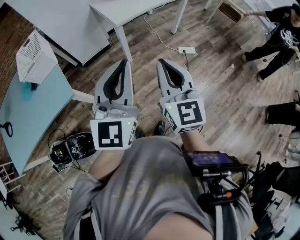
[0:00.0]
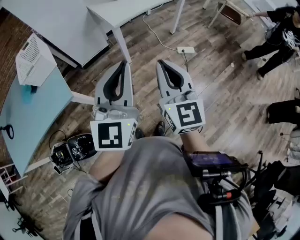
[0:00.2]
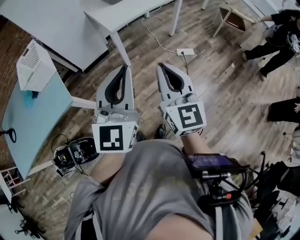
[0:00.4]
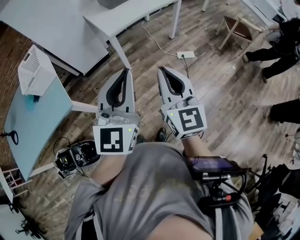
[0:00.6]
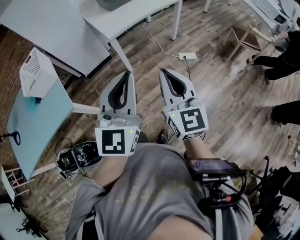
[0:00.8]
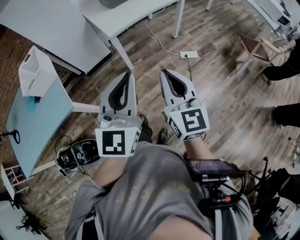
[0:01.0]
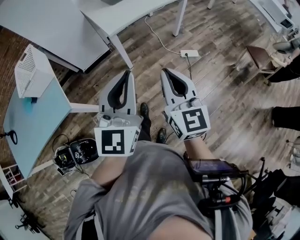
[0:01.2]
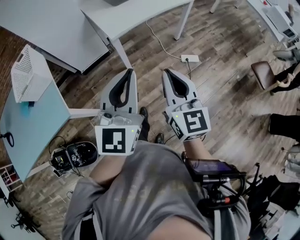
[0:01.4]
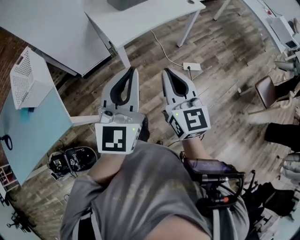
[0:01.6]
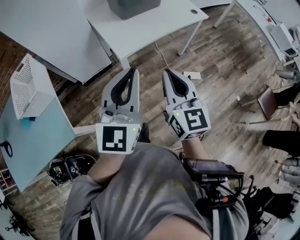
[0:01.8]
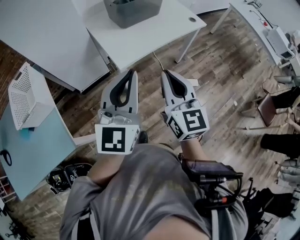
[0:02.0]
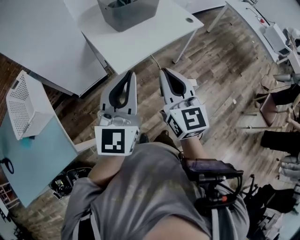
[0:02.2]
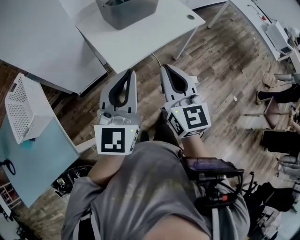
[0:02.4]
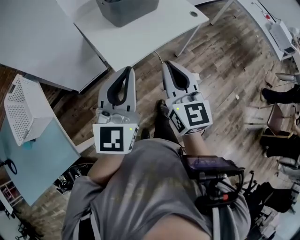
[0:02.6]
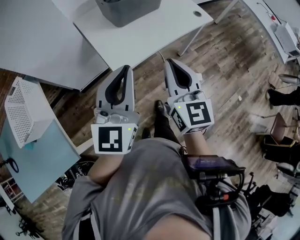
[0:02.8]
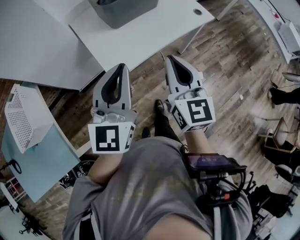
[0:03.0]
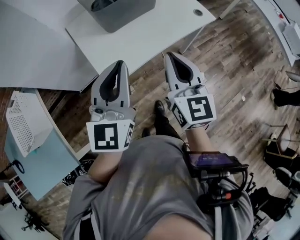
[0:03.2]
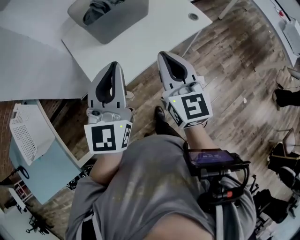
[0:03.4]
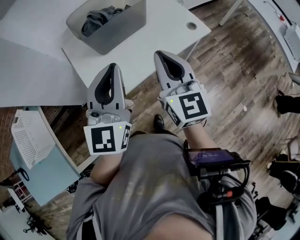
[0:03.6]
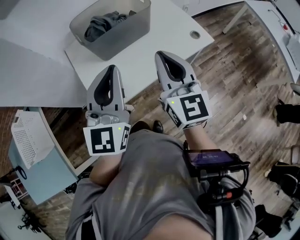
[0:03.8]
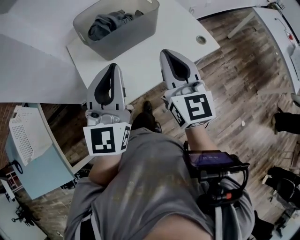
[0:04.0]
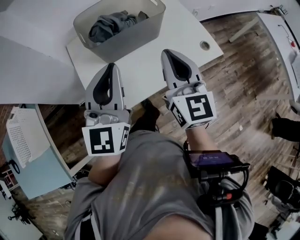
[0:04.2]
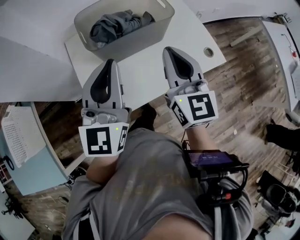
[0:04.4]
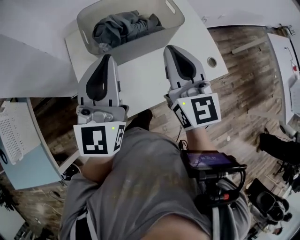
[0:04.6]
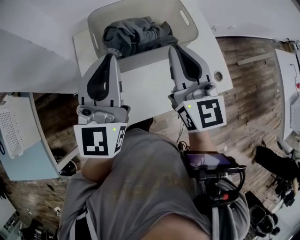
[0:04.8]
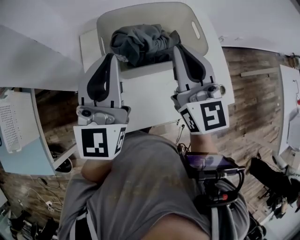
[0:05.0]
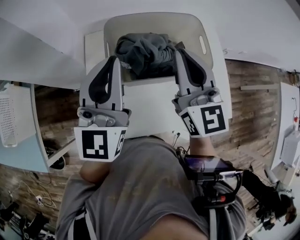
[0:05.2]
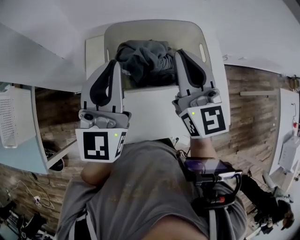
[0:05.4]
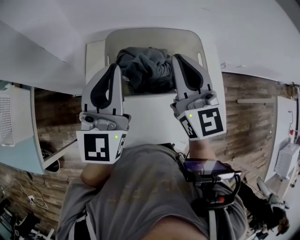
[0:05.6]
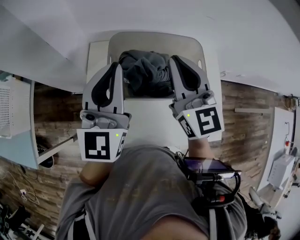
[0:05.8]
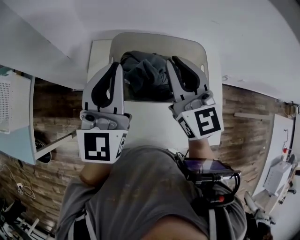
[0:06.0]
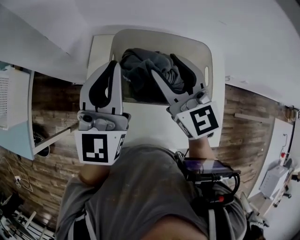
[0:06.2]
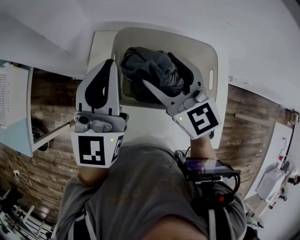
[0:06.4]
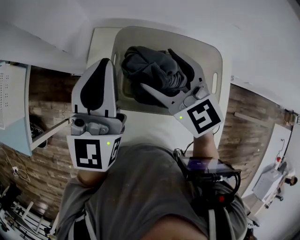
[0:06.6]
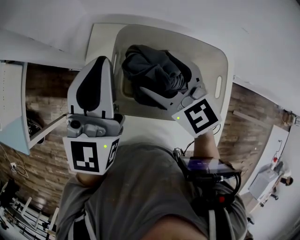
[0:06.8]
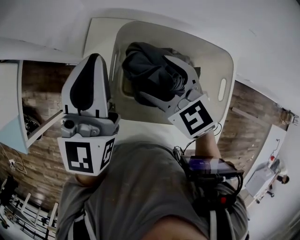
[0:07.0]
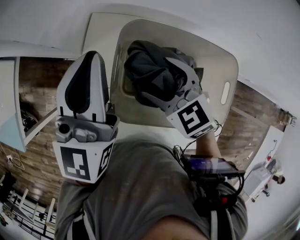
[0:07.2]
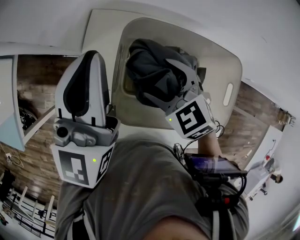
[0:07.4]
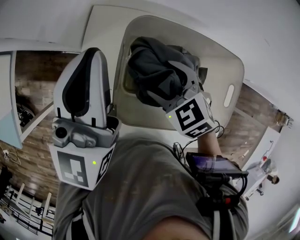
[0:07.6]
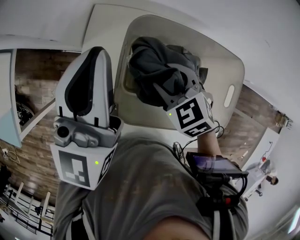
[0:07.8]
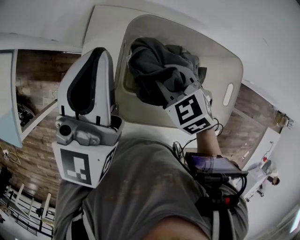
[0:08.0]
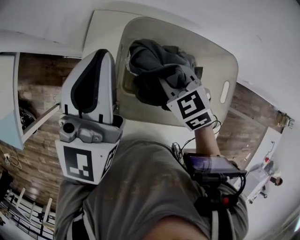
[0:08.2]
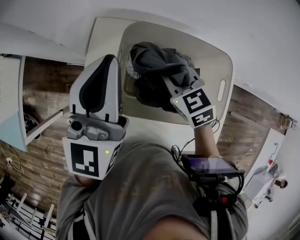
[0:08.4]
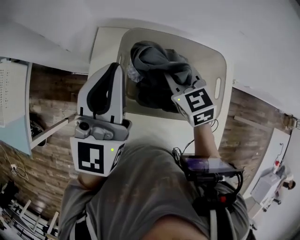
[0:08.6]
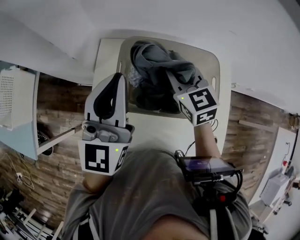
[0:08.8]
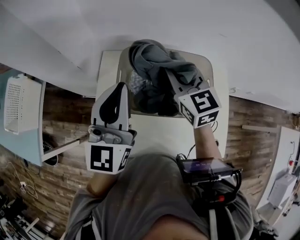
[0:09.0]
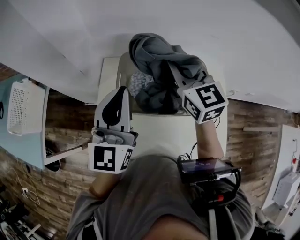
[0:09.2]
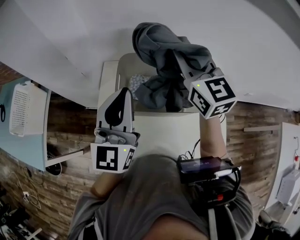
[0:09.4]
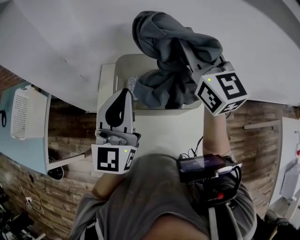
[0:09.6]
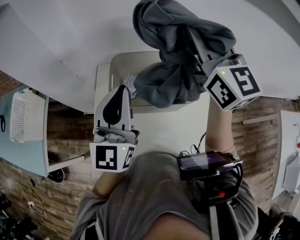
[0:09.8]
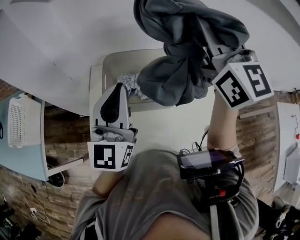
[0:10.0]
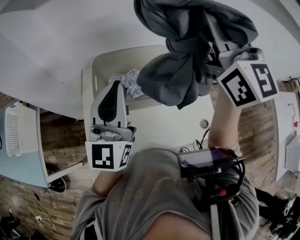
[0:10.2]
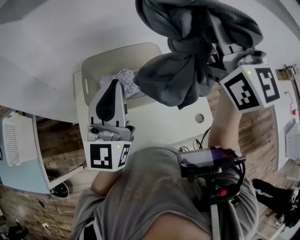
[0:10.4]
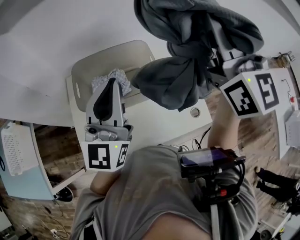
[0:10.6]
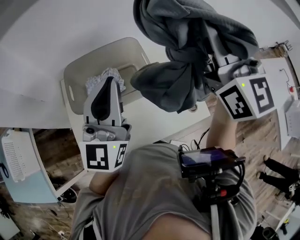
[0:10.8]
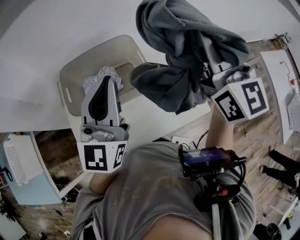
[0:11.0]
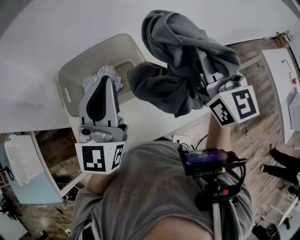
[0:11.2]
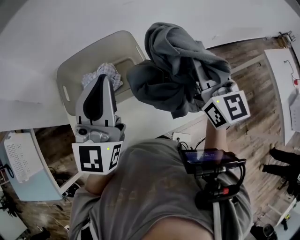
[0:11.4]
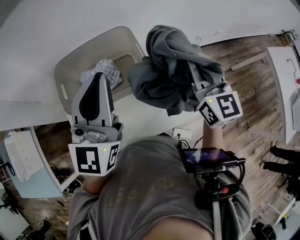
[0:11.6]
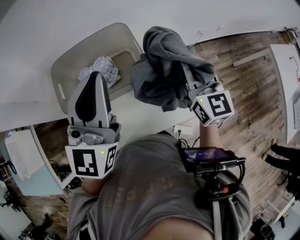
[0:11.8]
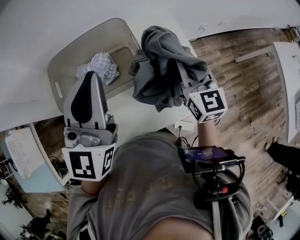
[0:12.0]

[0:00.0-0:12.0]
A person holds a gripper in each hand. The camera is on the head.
0:00.0 to 0:01.6: Both grippers move forward, some 20 cm.
0:01.6 to 0:03.0: The grippers both shift forward by roughly 25 cm.
0:03.0 to 0:04.4: Both grippers move forward, approximately 25 cm.
0:04.4 to 0:06.0: The right gripper moves some 25 cm, and swivels roughly 30 degrees. Meanwhile the left gripper changes place by approximately 20 cm, and swivels some 30 degrees.
0:06.0 to 0:07.6: The left gripper goes roughly 10 cm forward. The right gripper goes some 20 cm downward, points its fingers roughly 50 degrees further downward, and opens.
0:07.6 to 0:09.0: The left gripper is displaced backward by about 10 cm; the right gripper moves upward, roughly 15 cm, angles its fingers upward, by roughly 40 degrees, and closes.
0:09.0 to 0:10.4: The left gripper heads to the right, backward and upward, covering approximately 15 cm; the right gripper travels upward, to the right and backward by some 35 cm, and tilts its fingers about 30 degrees upward.
0:10.4 to 0:12.0: The right gripper heads downward, covering about 35 cm, and changes its angle by approximately 30 degrees. Meanwhile the left gripper travels to the right by some 5 cm.

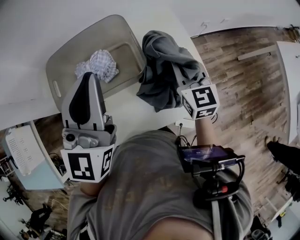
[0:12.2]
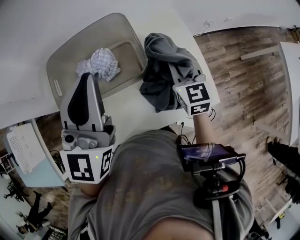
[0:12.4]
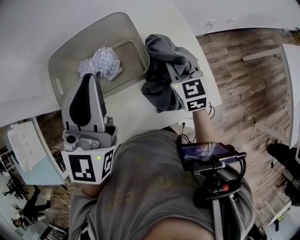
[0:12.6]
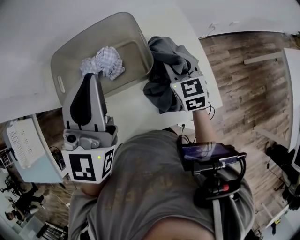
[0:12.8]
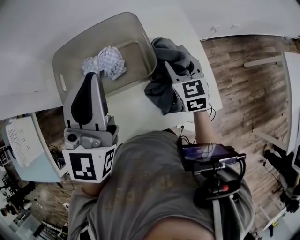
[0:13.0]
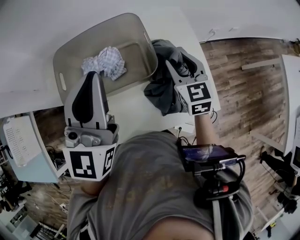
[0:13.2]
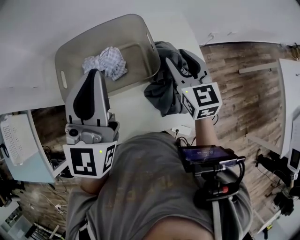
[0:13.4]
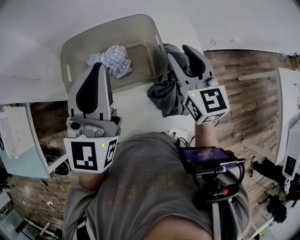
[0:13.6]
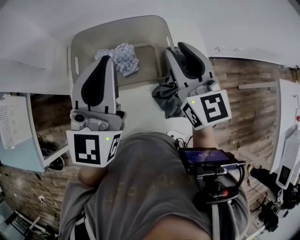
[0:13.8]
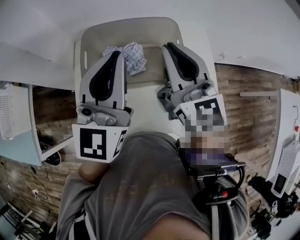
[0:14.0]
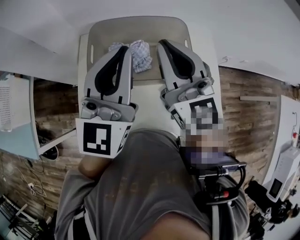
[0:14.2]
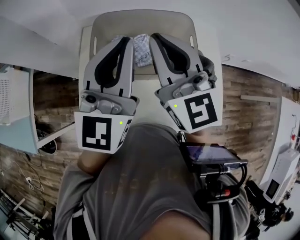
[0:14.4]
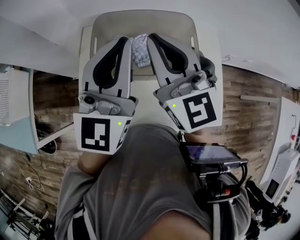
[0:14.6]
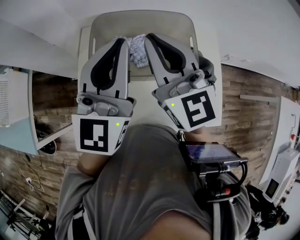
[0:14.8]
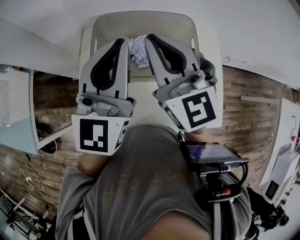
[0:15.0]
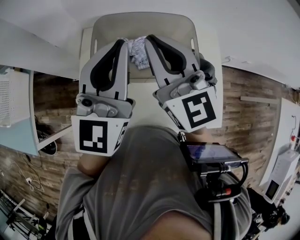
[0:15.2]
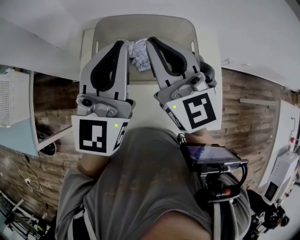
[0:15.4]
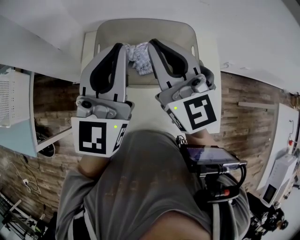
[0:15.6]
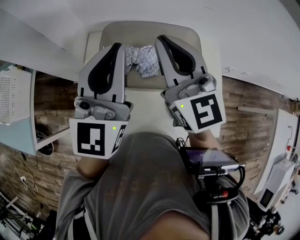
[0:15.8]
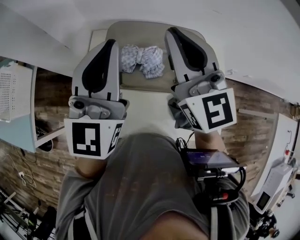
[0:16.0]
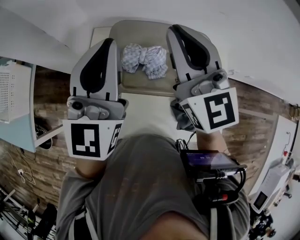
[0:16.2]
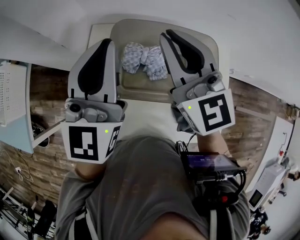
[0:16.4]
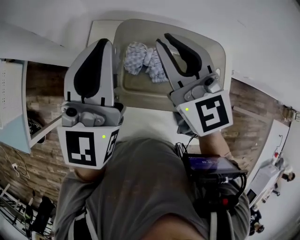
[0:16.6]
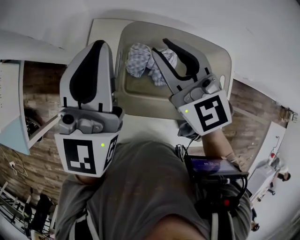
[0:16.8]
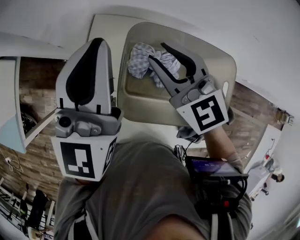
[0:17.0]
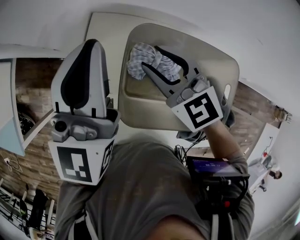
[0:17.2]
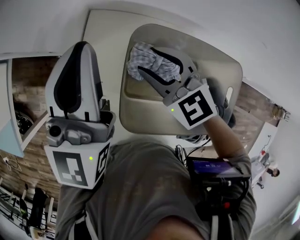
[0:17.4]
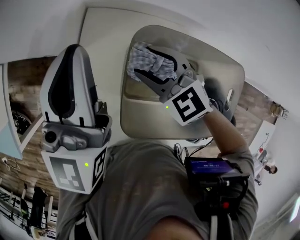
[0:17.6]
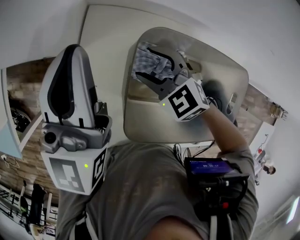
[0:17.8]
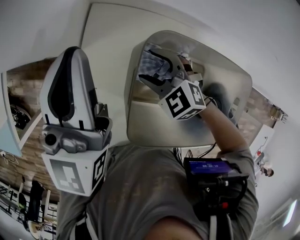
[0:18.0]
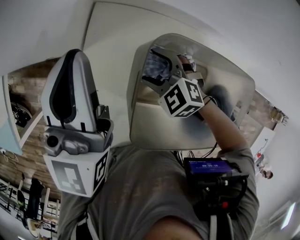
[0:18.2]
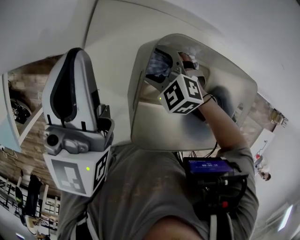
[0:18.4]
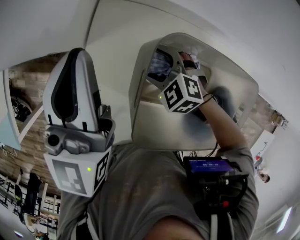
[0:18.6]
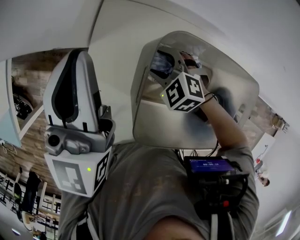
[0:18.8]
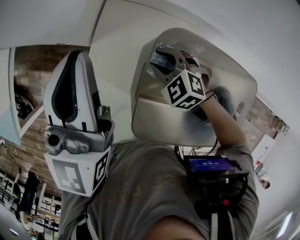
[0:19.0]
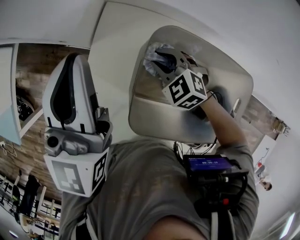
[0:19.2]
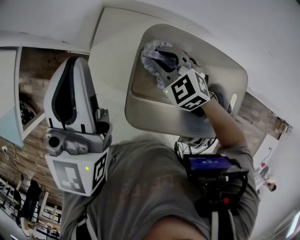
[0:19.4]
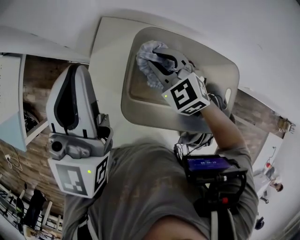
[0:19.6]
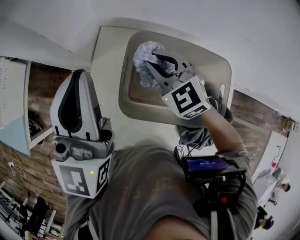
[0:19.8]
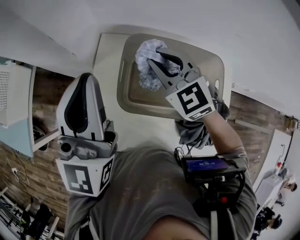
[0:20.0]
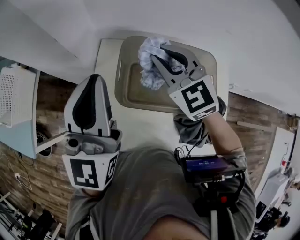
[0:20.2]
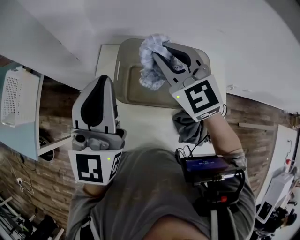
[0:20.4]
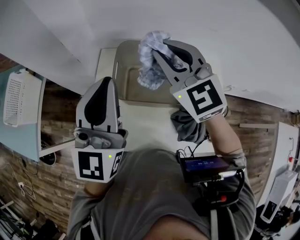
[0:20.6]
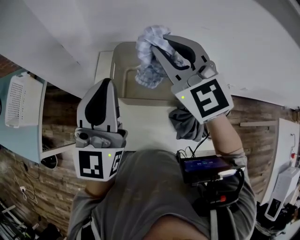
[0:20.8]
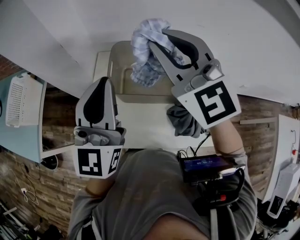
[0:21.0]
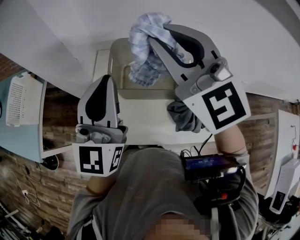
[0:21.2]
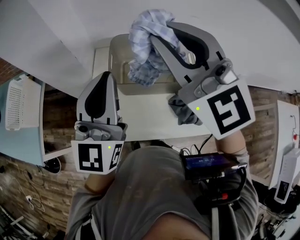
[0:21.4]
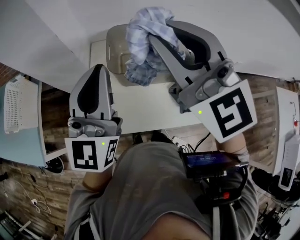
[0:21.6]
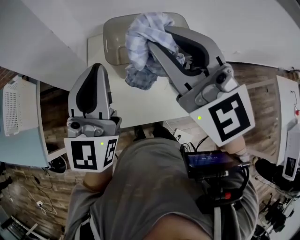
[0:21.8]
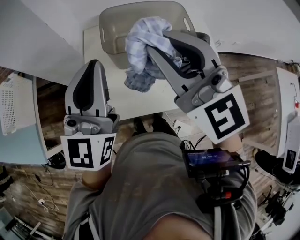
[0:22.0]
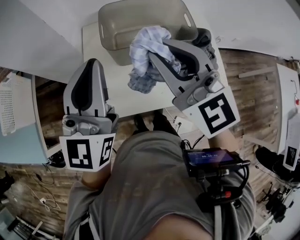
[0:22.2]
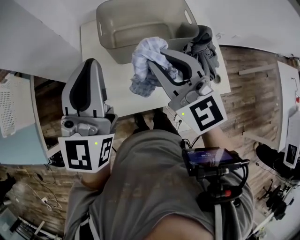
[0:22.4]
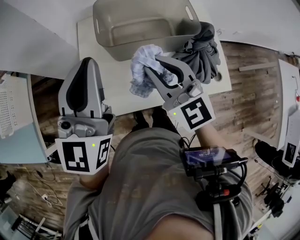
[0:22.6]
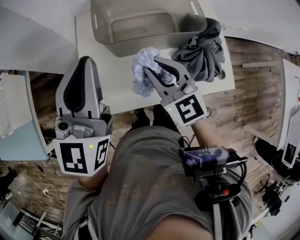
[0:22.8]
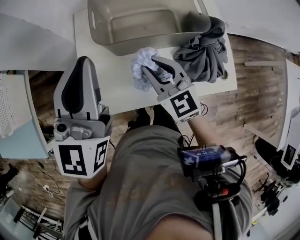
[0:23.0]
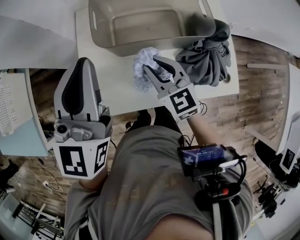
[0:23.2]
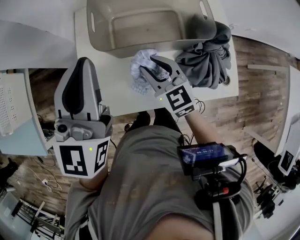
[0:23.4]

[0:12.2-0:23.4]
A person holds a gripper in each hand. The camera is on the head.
0:12.2 to 0:13.8: The left gripper heads to the left, covering some 5 cm. The right gripper travels upward and to the left by some 20 cm, and swivels roughly 20 degrees.
0:13.8 to 0:15.4: The left gripper shifts by some 5 cm, while the right gripper heads to the left, covering approximately 15 cm.
0:15.4 to 0:17.0: The left gripper is displaced forward, to the left and downward by roughly 25 cm. The right gripper moves downward, forward and to the left, some 25 cm, and turns by approximately 30 degrees.
0:17.0 to 0:18.6: The right gripper moves downward, about 20 cm, tips its fingers downward by some 40 degrees, and opens up.
0:18.6 to 0:20.2: The right gripper is displaced upward by roughly 30 cm, points its fingers some 40 degrees further upward, and closes, while the left gripper shifts approximately 20 cm backward and upward.
0:20.2 to 0:21.8: The right gripper moves backward and upward, about 25 cm, and changes its angle by roughly 20 degrees. The left gripper travels backward by approximately 15 cm.
0:21.8 to 0:23.4: The left gripper is displaced forward by some 5 cm. Meanwhile the right gripper goes roughly 30 cm downward, and swivels about 30 degrees.
